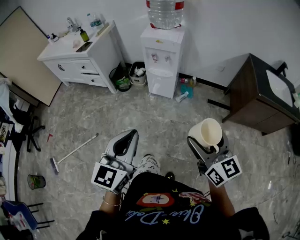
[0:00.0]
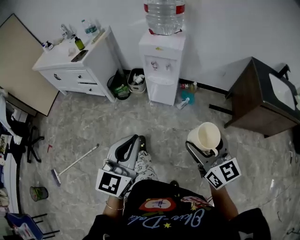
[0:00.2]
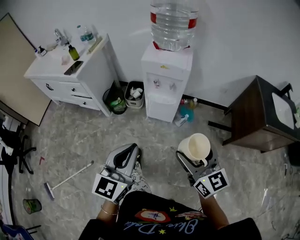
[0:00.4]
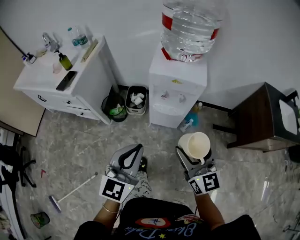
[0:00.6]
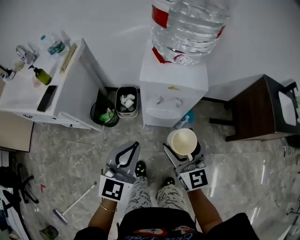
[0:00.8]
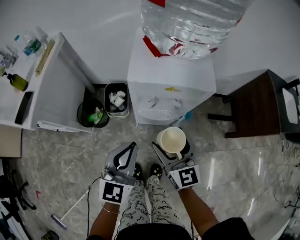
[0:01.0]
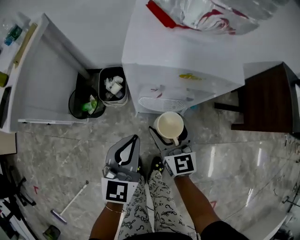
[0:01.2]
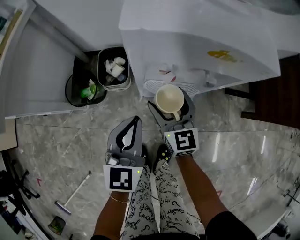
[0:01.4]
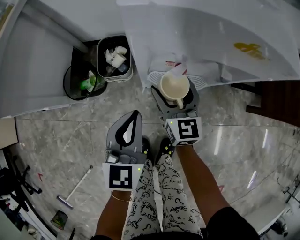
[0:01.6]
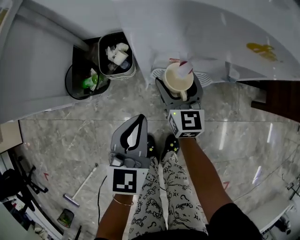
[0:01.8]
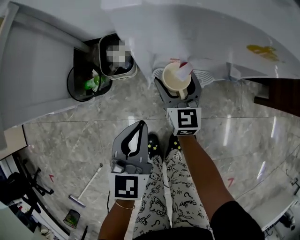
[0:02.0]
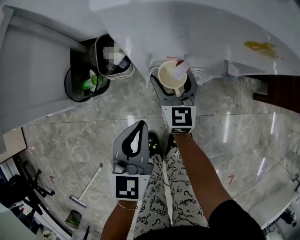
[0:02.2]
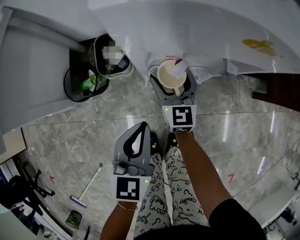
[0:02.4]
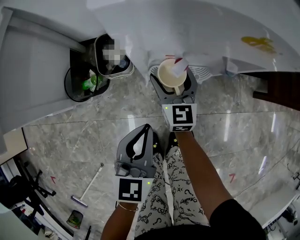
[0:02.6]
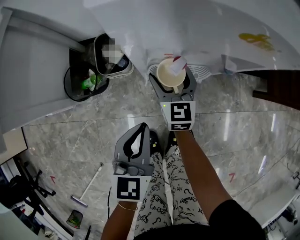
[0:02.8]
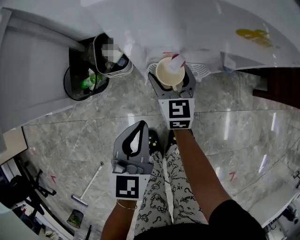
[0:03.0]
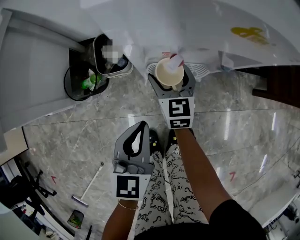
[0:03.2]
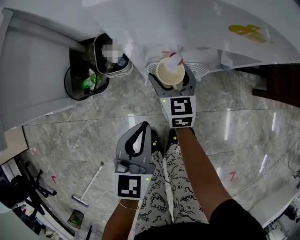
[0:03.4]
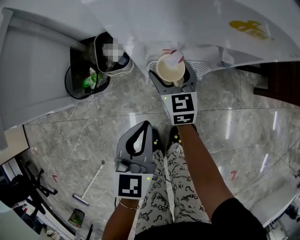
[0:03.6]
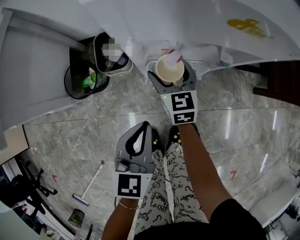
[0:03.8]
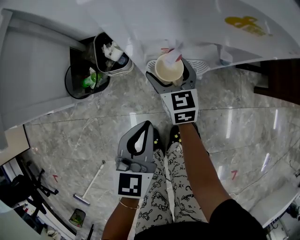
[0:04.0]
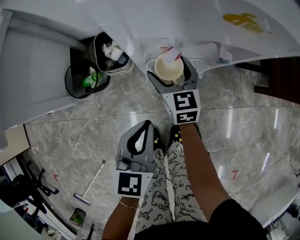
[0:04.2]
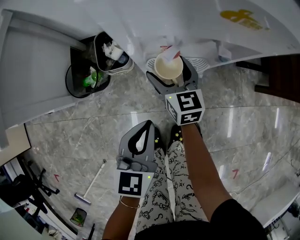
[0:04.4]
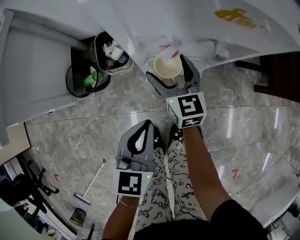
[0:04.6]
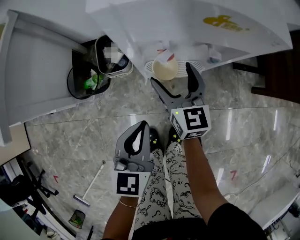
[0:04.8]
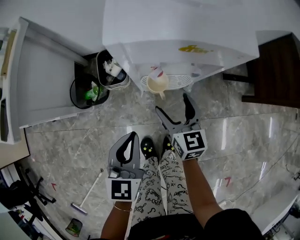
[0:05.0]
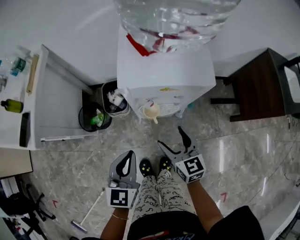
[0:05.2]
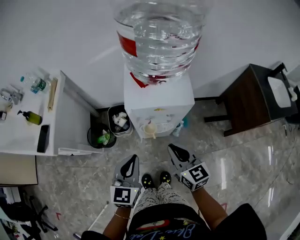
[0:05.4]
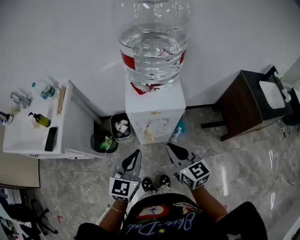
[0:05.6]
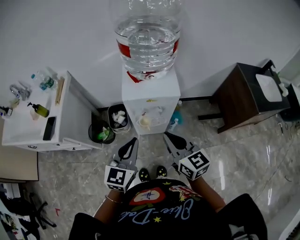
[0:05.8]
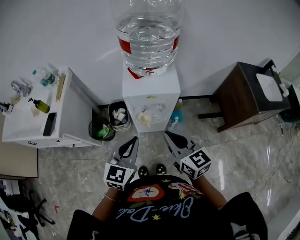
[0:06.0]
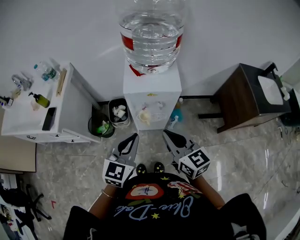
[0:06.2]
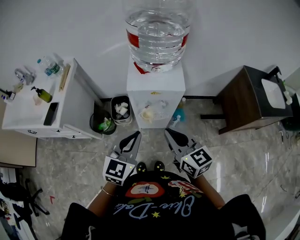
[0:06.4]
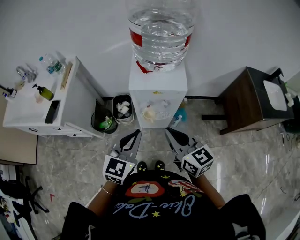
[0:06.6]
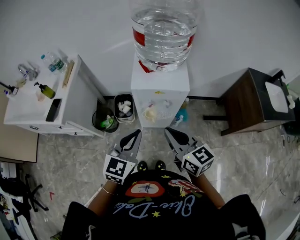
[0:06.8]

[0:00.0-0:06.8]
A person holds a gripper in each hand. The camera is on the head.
0:00.0 to 0:01.4: Both grippers are carried forward, approximately 70 cm. Both grippers travel together downward, roughly 40 cm. The right gripper turns by some 20 degrees.
0:01.4 to 0:02.8: The right gripper moves downward, some 5 cm.
0:02.8 to 0:04.0: The grippers move only a little.
0:04.0 to 0:05.4: The right gripper travels upward and backward by roughly 35 cm, and closes its fingers. Meanwhile the left gripper goes approximately 25 cm upward.
0:05.4 to 0:06.8: The left gripper moves upward, about 10 cm, while the right gripper travels upward and backward by about 15 cm.

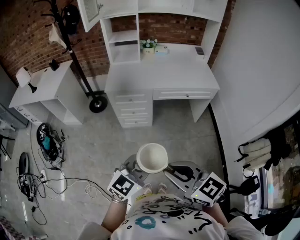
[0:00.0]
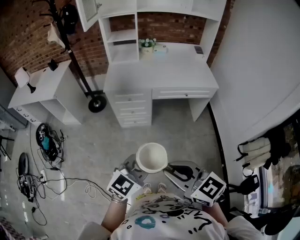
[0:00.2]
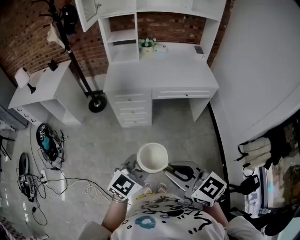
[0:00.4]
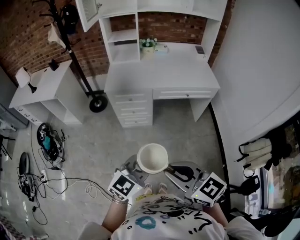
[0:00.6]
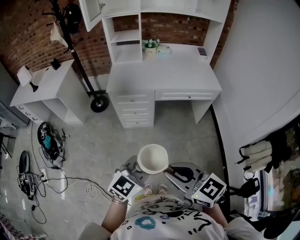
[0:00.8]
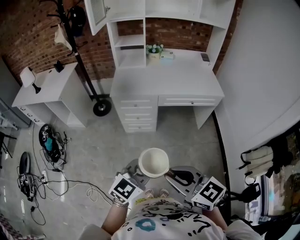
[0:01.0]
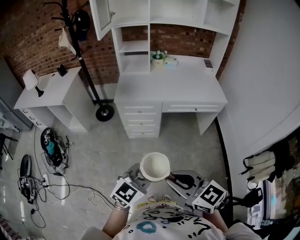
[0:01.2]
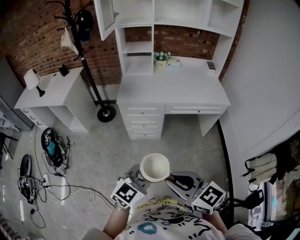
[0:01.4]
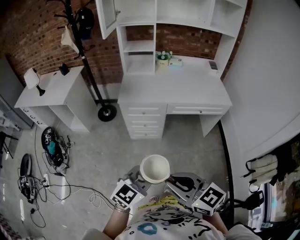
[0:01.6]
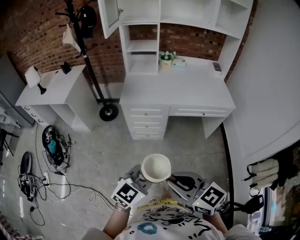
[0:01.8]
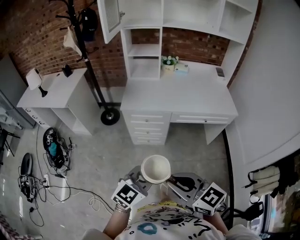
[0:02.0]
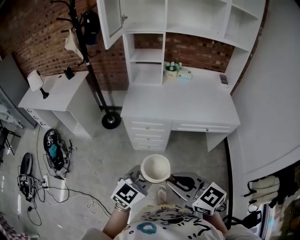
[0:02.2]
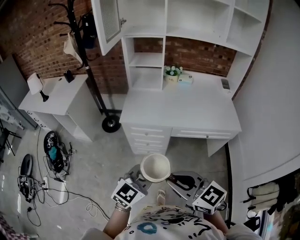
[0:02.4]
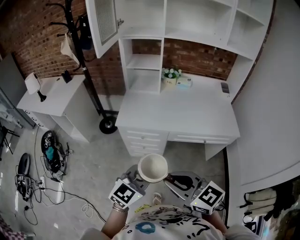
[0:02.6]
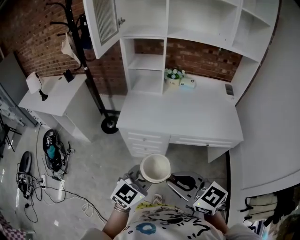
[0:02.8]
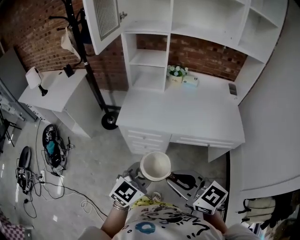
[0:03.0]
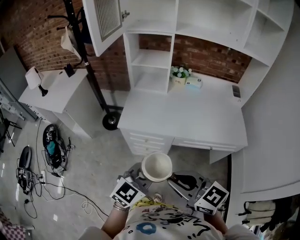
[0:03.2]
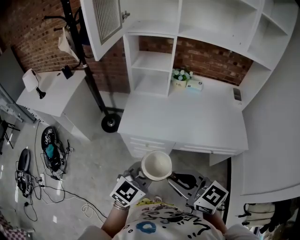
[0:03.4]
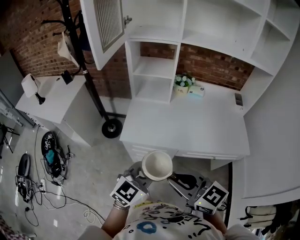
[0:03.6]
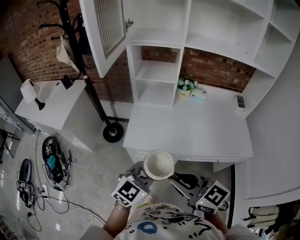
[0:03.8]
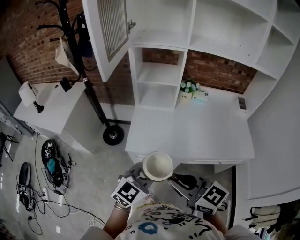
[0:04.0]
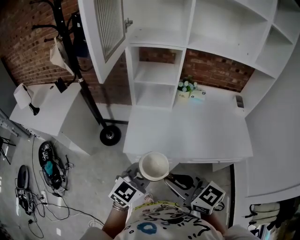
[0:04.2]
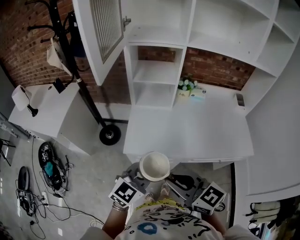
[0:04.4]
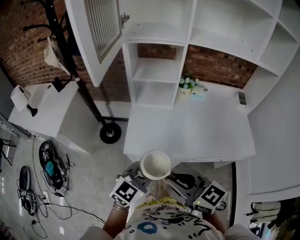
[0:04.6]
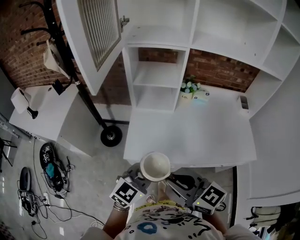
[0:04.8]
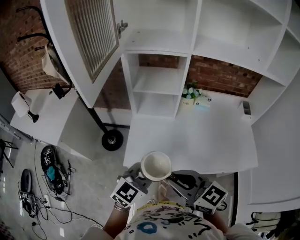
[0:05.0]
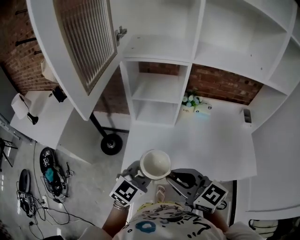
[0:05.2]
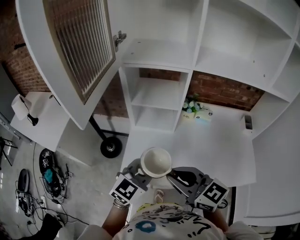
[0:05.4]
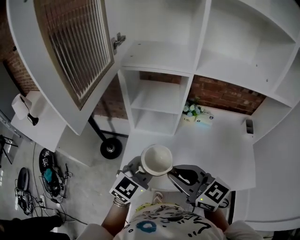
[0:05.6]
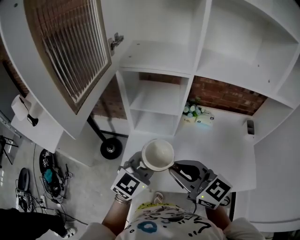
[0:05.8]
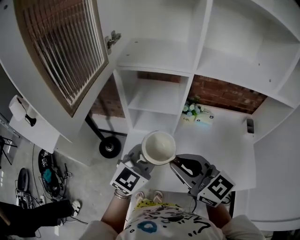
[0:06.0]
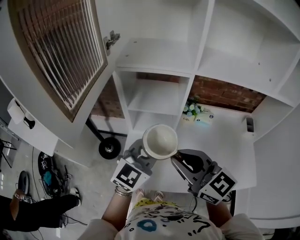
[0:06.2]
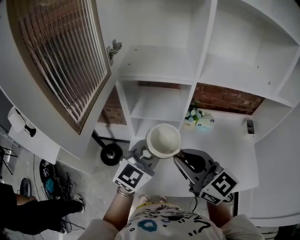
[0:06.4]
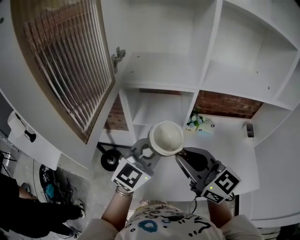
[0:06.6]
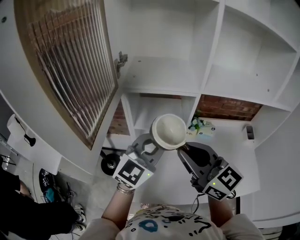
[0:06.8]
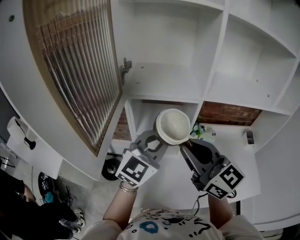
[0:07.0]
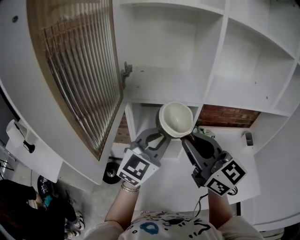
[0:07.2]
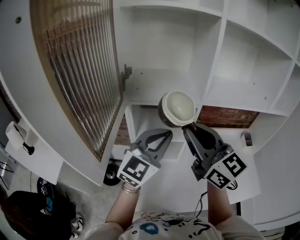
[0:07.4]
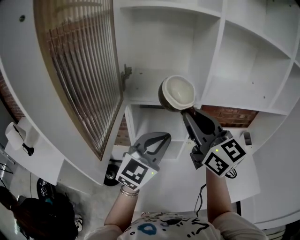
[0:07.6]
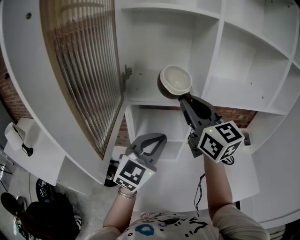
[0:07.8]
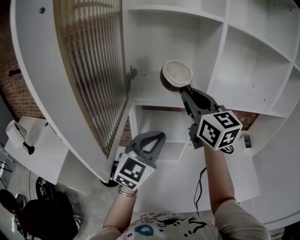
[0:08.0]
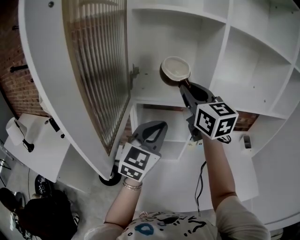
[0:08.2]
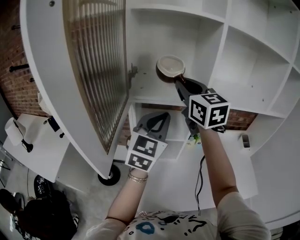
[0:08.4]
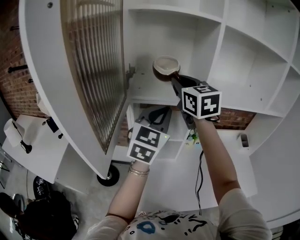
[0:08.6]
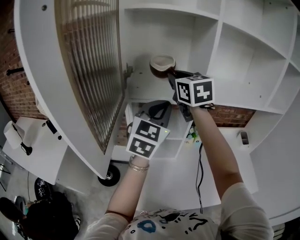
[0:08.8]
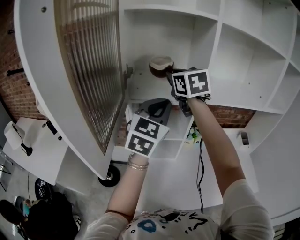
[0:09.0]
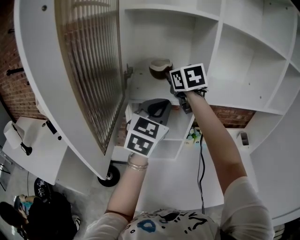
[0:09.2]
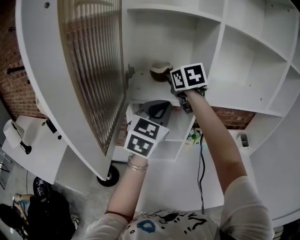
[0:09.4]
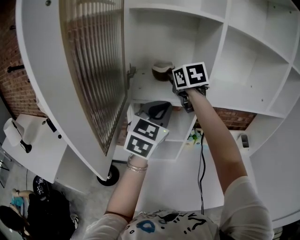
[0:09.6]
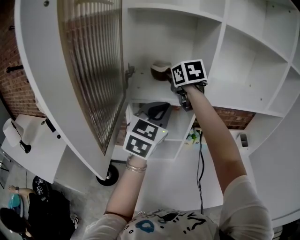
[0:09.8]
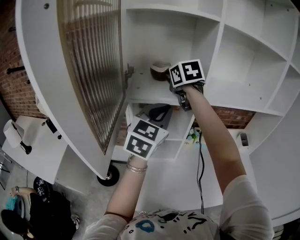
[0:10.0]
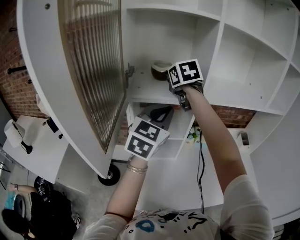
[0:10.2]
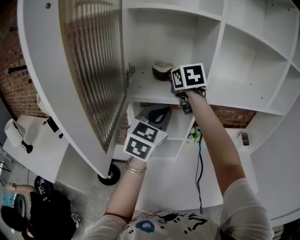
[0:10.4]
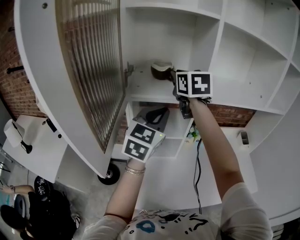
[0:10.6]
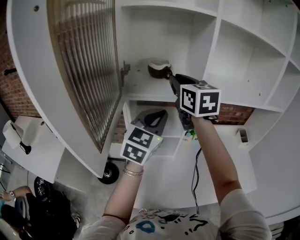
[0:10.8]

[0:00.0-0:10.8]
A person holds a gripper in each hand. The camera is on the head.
0:00.0 to 0:01.6: Both grippers travel together to the left, approximately 5 cm.
0:01.6 to 0:03.0: The grippers both shift forward by about 25 cm.
0:03.0 to 0:04.6: The two grippers go about 25 cm forward and to the left.
0:04.6 to 0:06.2: Both grippers move forward, about 25 cm.
0:06.2 to 0:07.8: The left gripper moves upward, forward and to the left, approximately 15 cm; the right gripper heads forward and upward, covering some 25 cm, and changes its angle by roughly 30 degrees.
0:07.8 to 0:09.2: The left gripper is displaced forward and upward by some 10 cm; the right gripper is displaced forward by some 15 cm, and changes its angle by roughly 30 degrees.
0:09.2 to 0:10.8: The right gripper is displaced backward by some 5 cm.

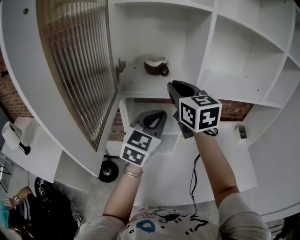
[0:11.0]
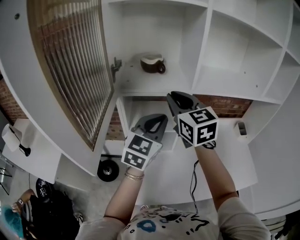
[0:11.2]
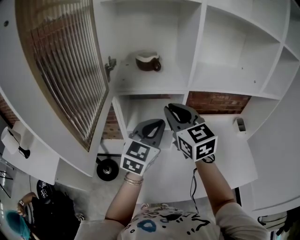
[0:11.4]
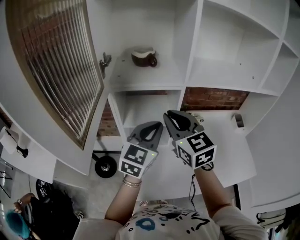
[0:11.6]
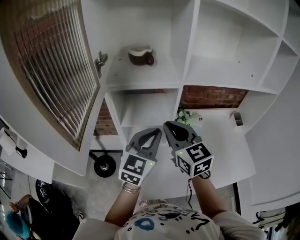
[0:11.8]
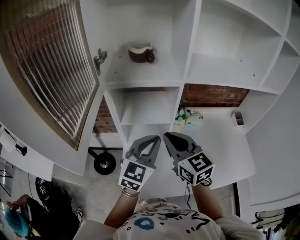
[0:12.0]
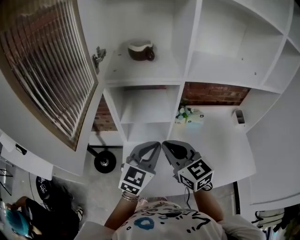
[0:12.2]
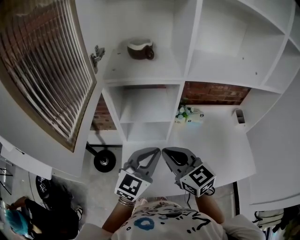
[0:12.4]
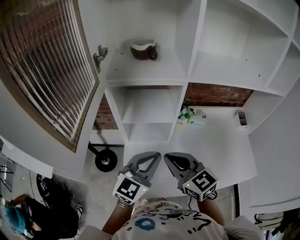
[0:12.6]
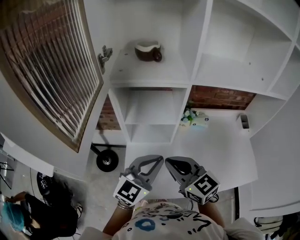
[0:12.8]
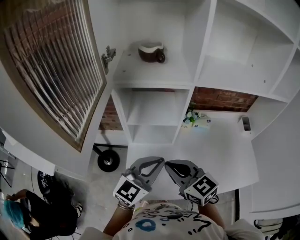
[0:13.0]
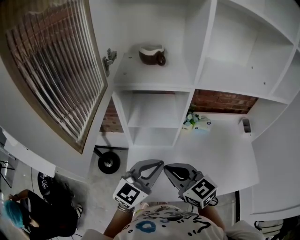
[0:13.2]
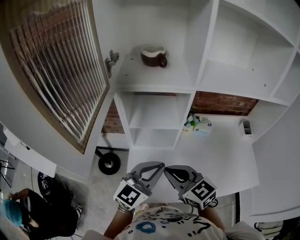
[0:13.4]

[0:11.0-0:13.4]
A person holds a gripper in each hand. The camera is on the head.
0:11.0 to 0:12.2: The left gripper heads downward and backward, covering about 15 cm. The right gripper is displaced downward and backward by some 25 cm.
0:12.2 to 0:13.4: Both grippers move backward, roughly 5 cm.

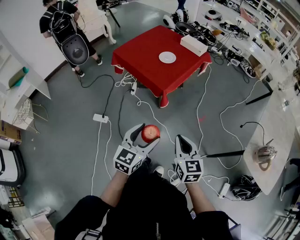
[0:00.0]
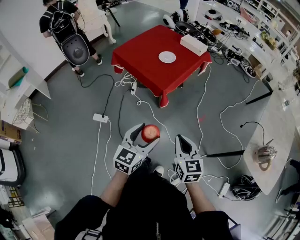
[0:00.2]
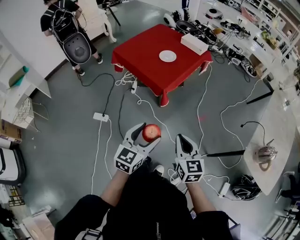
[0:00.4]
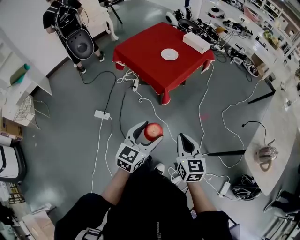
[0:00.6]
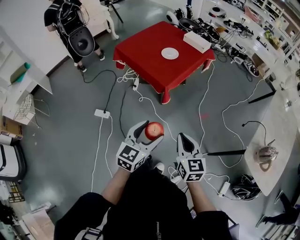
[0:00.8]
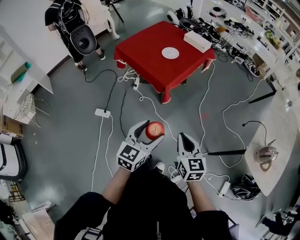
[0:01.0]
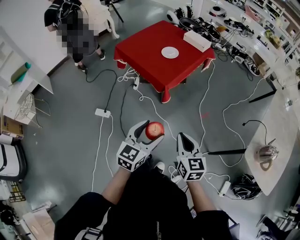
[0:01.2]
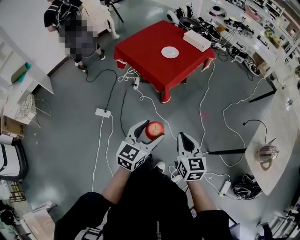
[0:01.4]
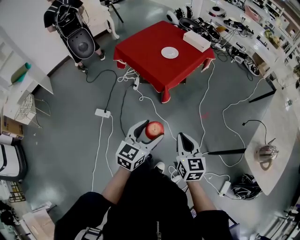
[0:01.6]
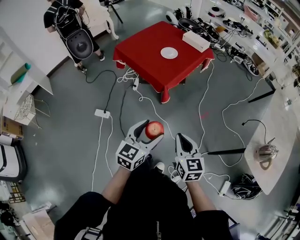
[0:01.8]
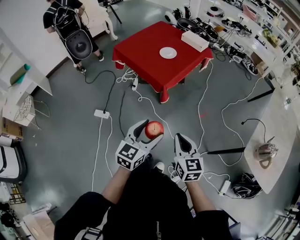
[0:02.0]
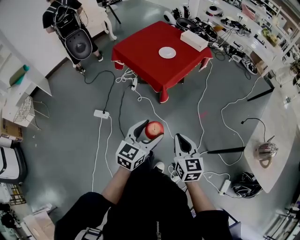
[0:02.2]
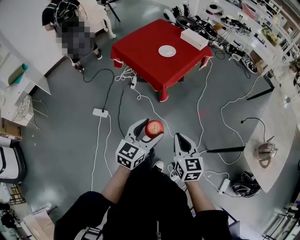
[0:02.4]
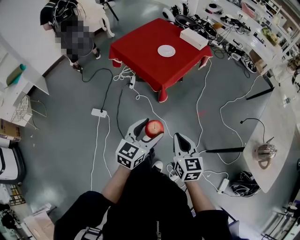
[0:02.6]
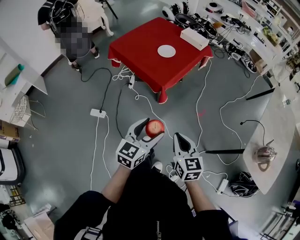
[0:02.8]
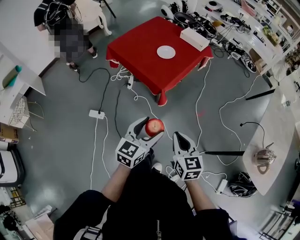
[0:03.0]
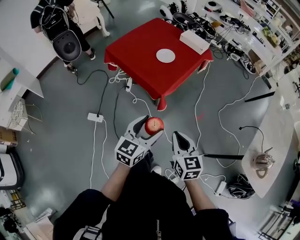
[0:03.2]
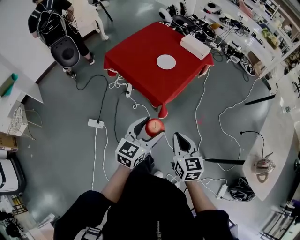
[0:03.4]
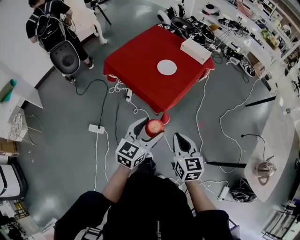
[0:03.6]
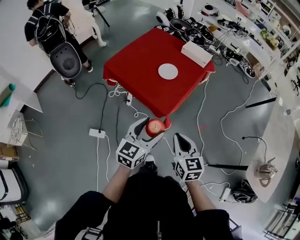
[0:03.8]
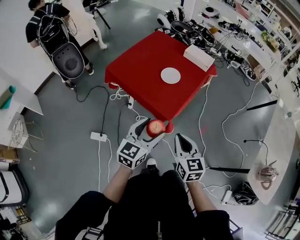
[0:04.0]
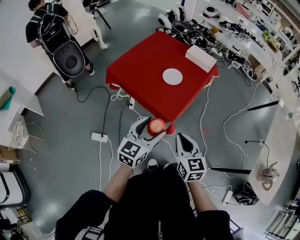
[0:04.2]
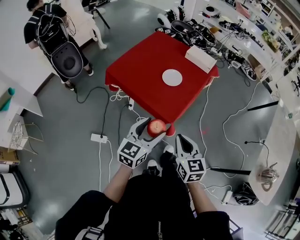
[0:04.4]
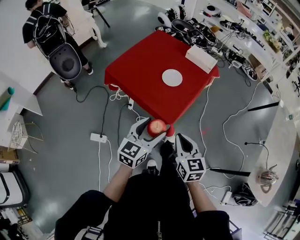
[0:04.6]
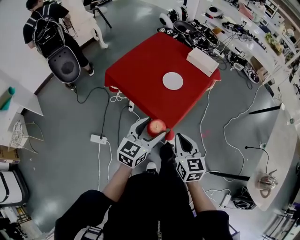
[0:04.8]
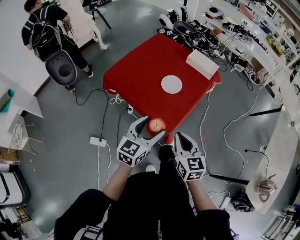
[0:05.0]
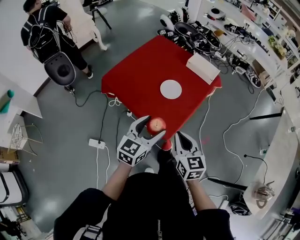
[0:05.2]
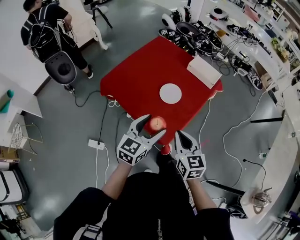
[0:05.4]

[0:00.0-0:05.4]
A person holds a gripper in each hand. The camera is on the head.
0:00.0 to 0:02.8: There are only small adjustments of the grippers.
0:02.8 to 0:04.0: Both grippers travel together forward and to the left, some 25 cm.
0:04.0 to 0:05.4: The grippers both shift forward by about 20 cm.
